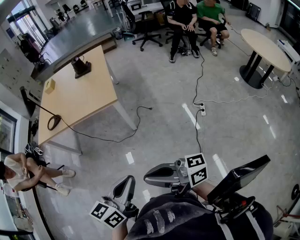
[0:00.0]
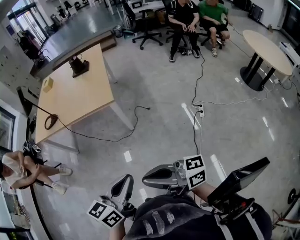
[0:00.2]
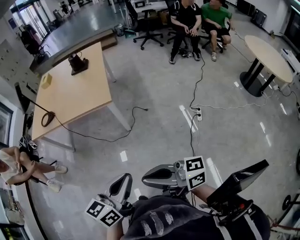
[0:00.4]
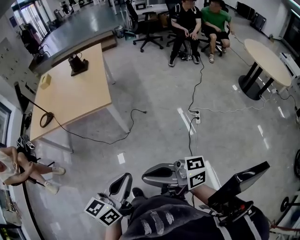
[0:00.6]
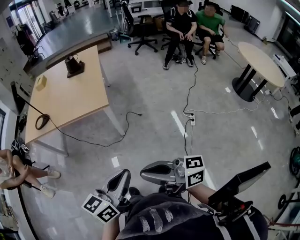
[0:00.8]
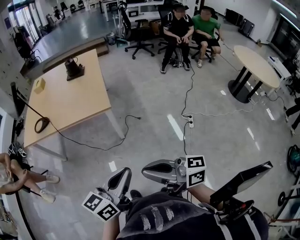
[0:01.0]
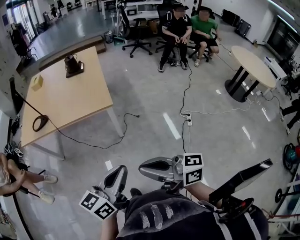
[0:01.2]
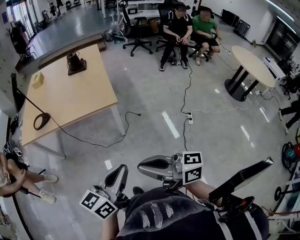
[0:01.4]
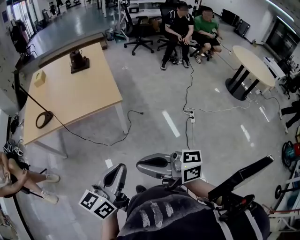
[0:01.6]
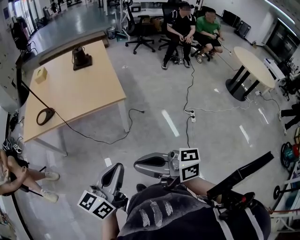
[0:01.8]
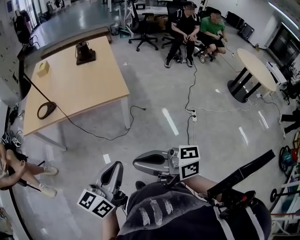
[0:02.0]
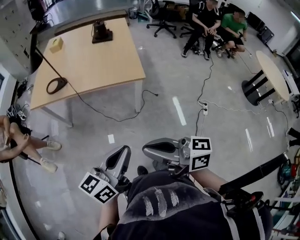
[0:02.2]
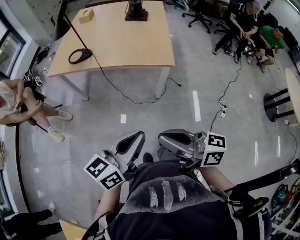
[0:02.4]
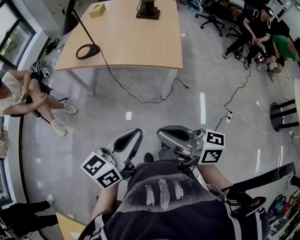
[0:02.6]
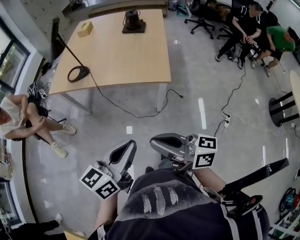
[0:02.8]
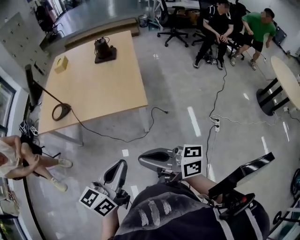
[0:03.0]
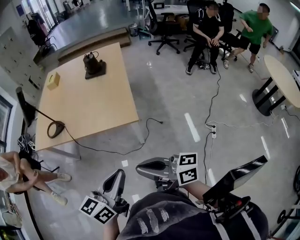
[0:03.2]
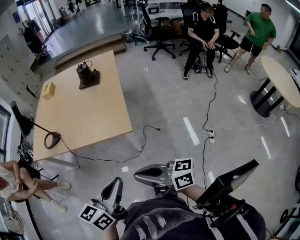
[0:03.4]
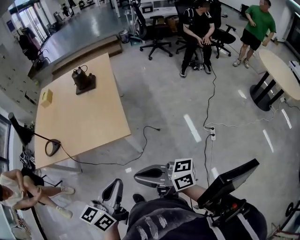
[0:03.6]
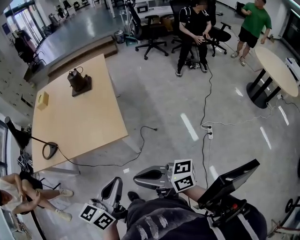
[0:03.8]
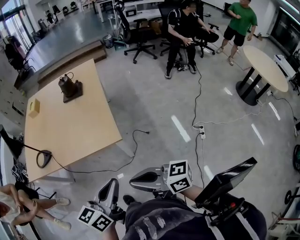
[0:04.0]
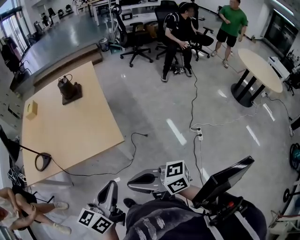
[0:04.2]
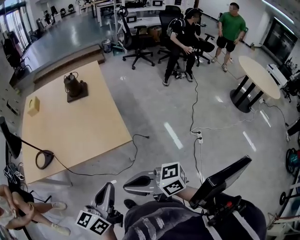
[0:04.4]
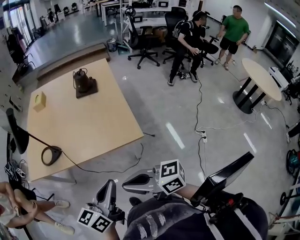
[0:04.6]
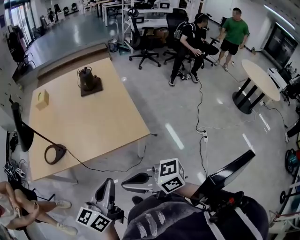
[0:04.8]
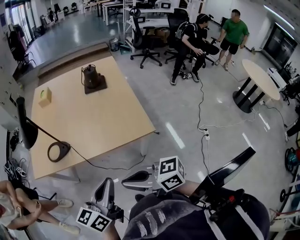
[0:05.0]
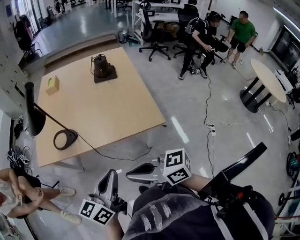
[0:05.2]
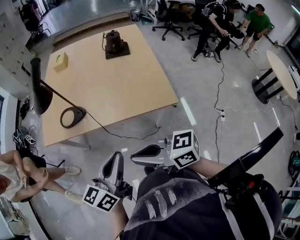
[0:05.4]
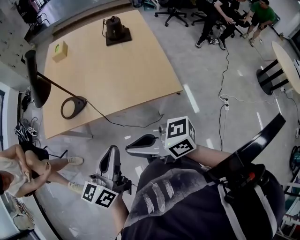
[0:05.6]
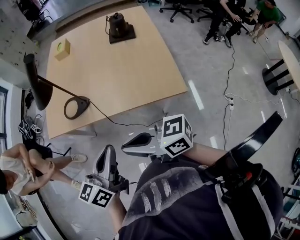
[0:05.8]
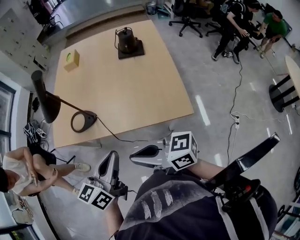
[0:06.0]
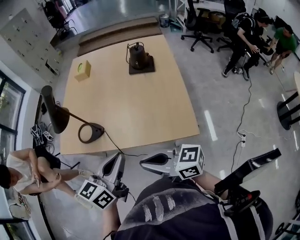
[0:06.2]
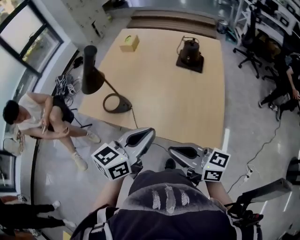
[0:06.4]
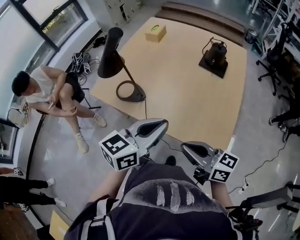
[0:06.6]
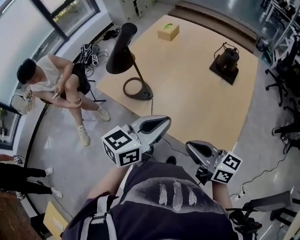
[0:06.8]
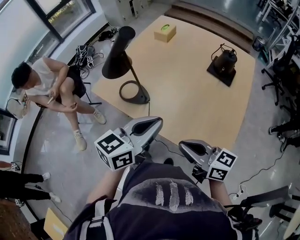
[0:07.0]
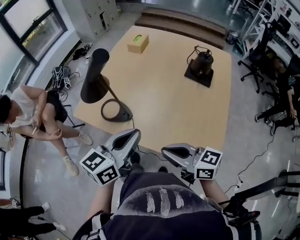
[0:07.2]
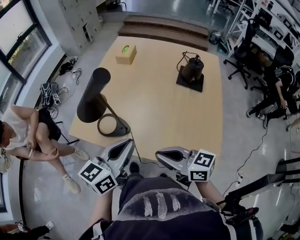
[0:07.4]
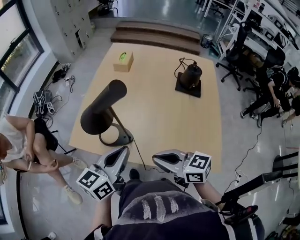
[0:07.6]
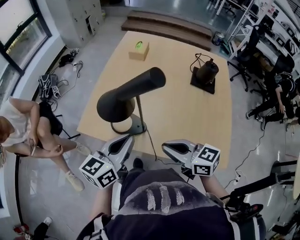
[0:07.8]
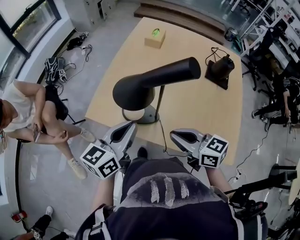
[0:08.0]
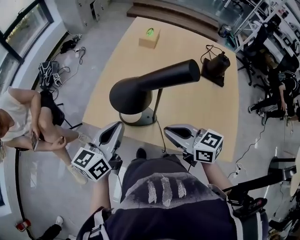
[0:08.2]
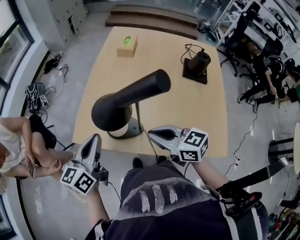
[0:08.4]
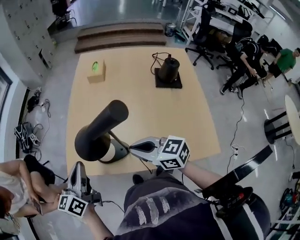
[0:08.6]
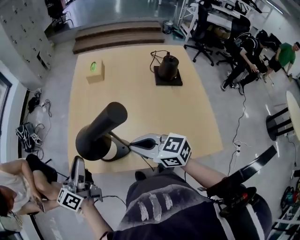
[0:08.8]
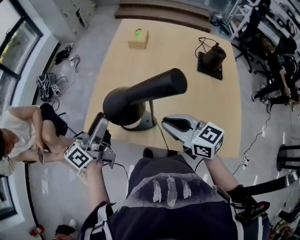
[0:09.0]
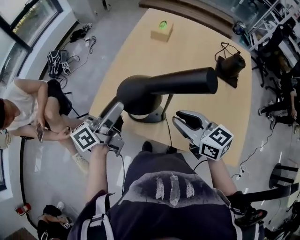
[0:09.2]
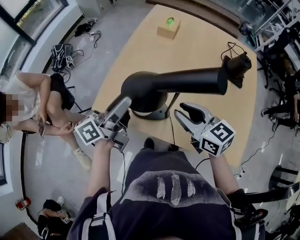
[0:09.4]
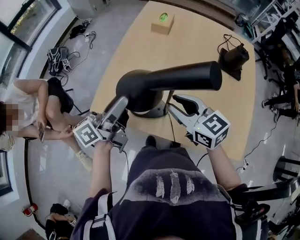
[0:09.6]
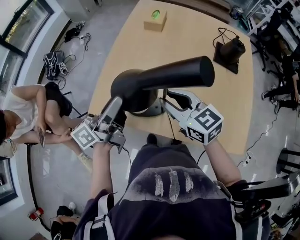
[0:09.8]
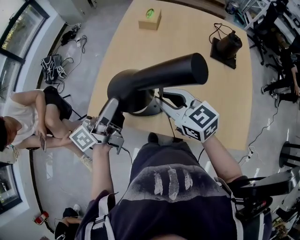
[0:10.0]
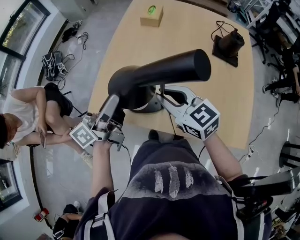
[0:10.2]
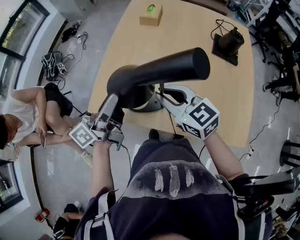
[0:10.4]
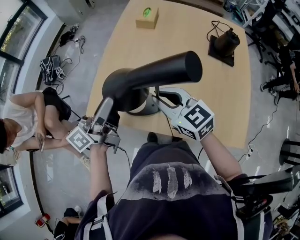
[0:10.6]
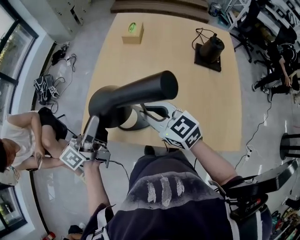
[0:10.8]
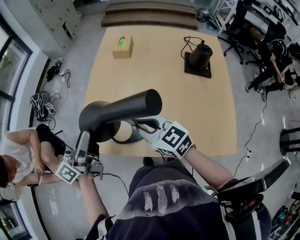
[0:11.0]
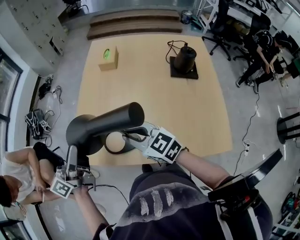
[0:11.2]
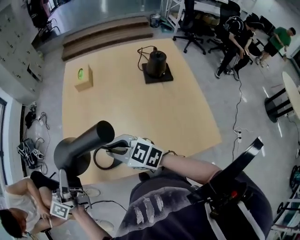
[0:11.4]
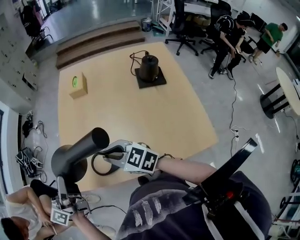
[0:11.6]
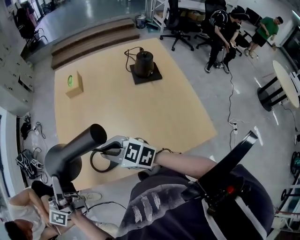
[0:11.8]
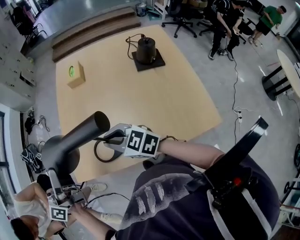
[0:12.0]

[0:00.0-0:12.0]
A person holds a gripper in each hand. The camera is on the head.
0:00.0 to 0:01.6: The two grippers go approximately 15 cm forward and to the left.
0:01.6 to 0:03.0: Both grippers travel together forward, approximately 10 cm.
0:03.0 to 0:04.4: Both grippers move forward, roughly 10 cm. The right gripper travels to the right and back again, some 10 cm each way.
0:04.4 to 0:06.0: The two grippers go about 25 cm to the left and forward.
0:06.0 to 0:07.6: Both grippers move forward, about 20 cm.
0:07.6 to 0:09.0: The left gripper heads forward and to the left, covering roughly 20 cm, changes its angle by approximately 30 degrees, and opens up. The right gripper is displaced forward by roughly 10 cm.
0:09.0 to 0:10.4: The right gripper travels to the left by some 5 cm.
0:10.4 to 0:12.0: The left gripper is displaced upward and to the left by some 10 cm, and rotates approximately 20 degrees.

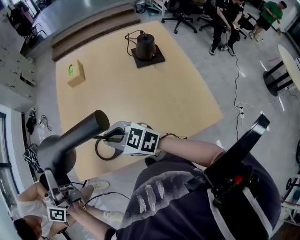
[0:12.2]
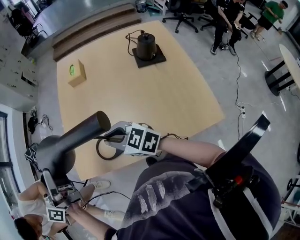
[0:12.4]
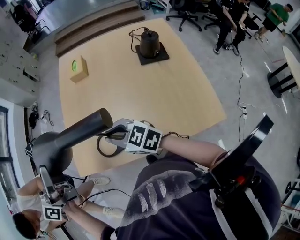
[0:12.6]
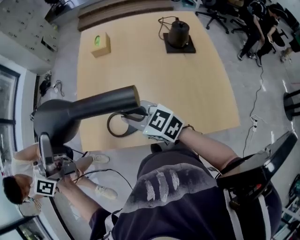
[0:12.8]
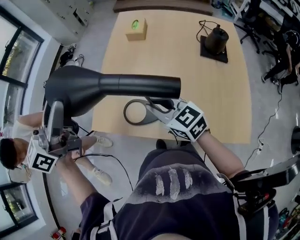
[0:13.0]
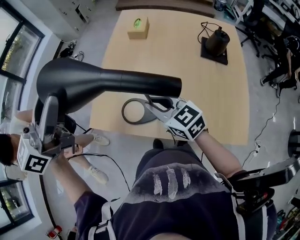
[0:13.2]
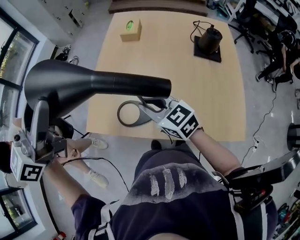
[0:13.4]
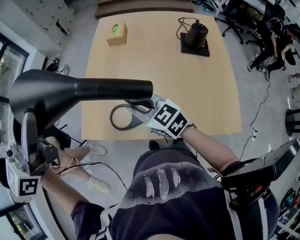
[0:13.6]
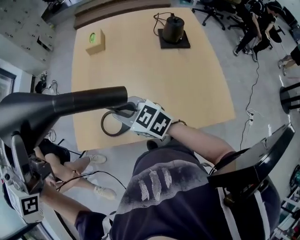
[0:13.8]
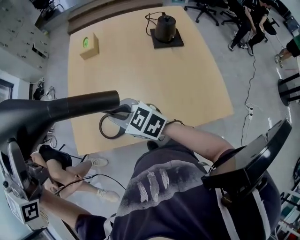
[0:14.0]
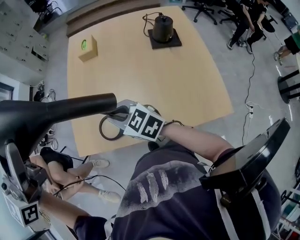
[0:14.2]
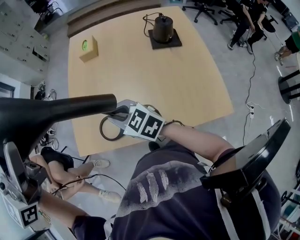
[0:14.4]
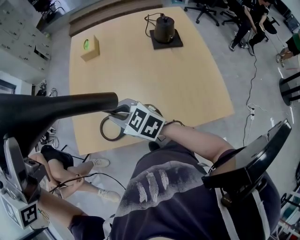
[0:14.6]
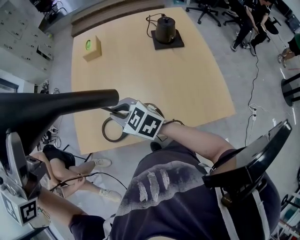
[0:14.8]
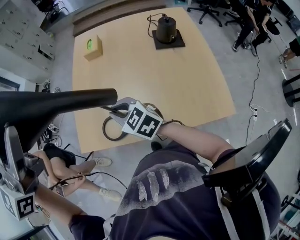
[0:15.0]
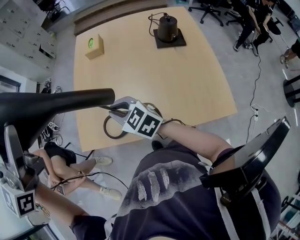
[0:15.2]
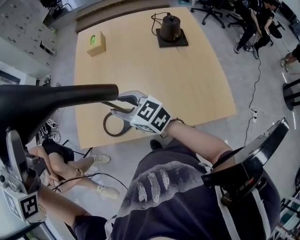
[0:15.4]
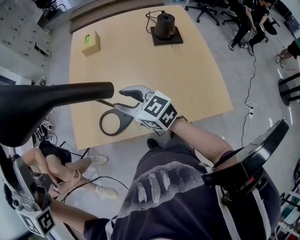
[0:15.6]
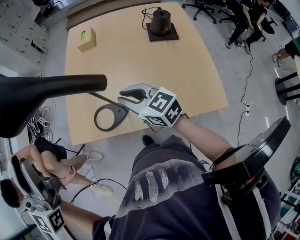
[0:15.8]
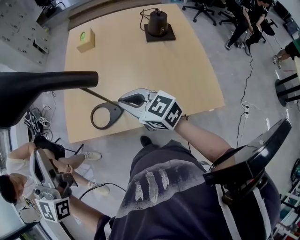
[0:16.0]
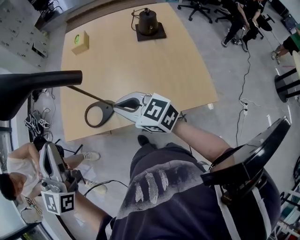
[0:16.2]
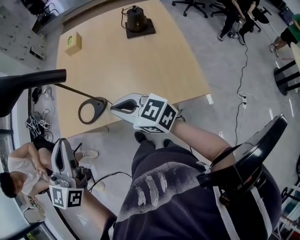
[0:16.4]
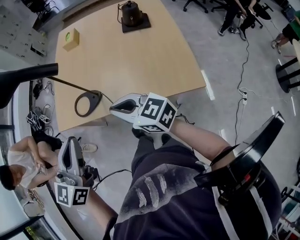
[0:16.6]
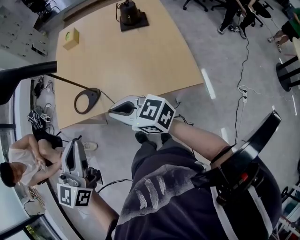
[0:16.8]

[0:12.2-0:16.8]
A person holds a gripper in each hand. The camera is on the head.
0:12.2 to 0:13.8: The left gripper goes about 15 cm upward, and swivels approximately 40 degrees.
0:13.8 to 0:15.2: The left gripper changes place by approximately 5 cm.
0:15.2 to 0:16.8: The right gripper travels backward and to the right by roughly 30 cm, and opens and closes again, while the left gripper moves backward and downward, approximately 35 cm, turns by approximately 30 degrees, and closes up.

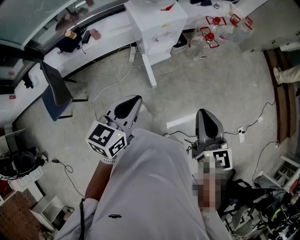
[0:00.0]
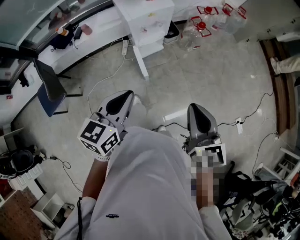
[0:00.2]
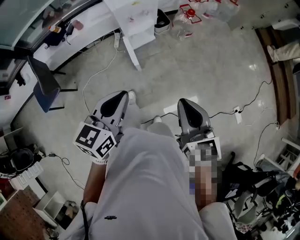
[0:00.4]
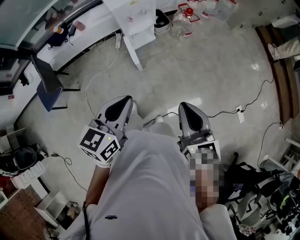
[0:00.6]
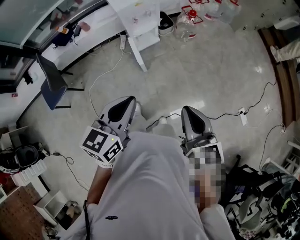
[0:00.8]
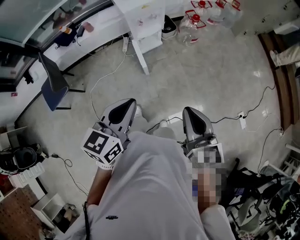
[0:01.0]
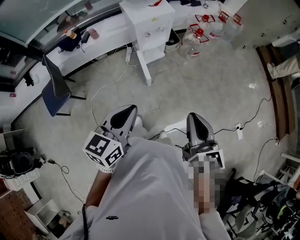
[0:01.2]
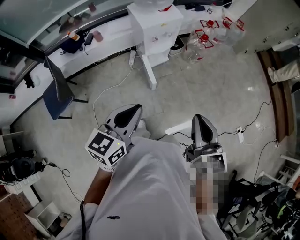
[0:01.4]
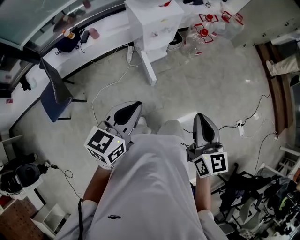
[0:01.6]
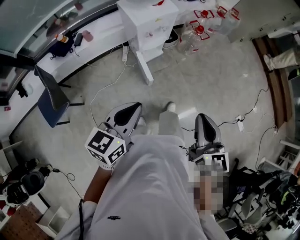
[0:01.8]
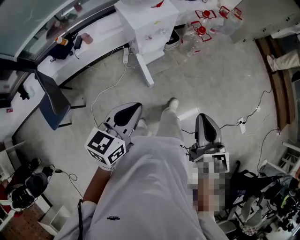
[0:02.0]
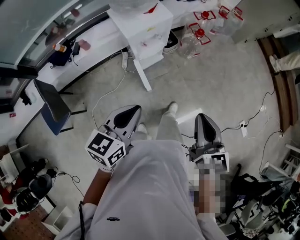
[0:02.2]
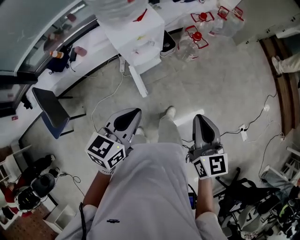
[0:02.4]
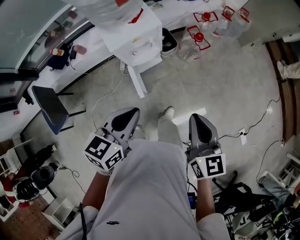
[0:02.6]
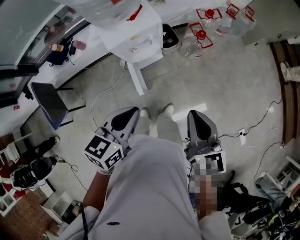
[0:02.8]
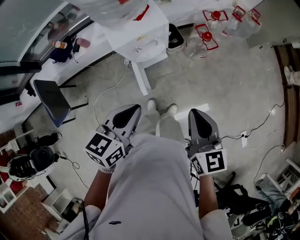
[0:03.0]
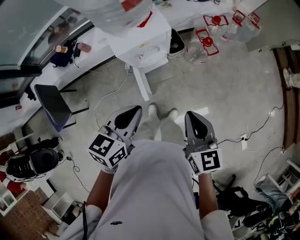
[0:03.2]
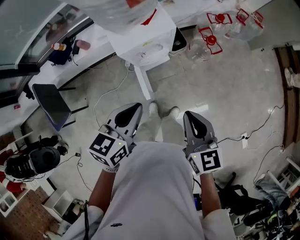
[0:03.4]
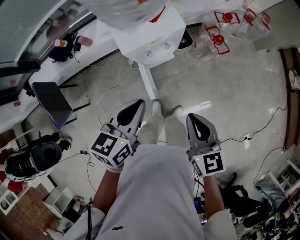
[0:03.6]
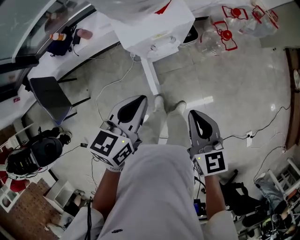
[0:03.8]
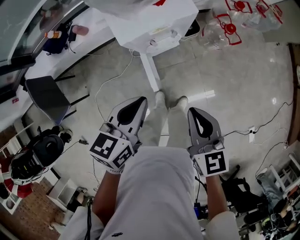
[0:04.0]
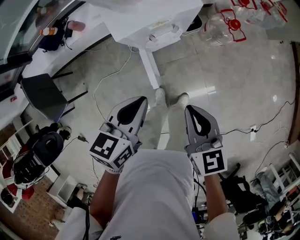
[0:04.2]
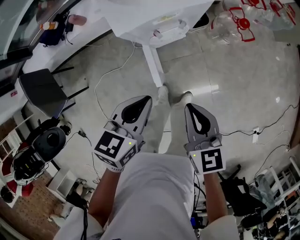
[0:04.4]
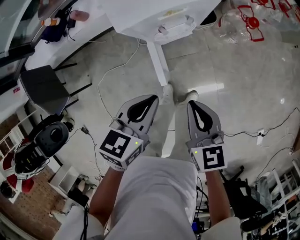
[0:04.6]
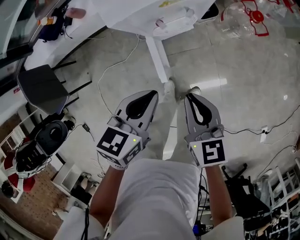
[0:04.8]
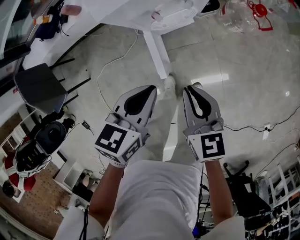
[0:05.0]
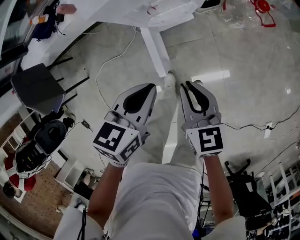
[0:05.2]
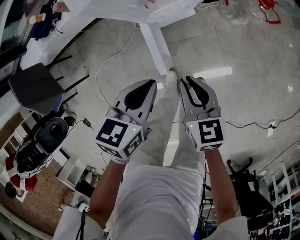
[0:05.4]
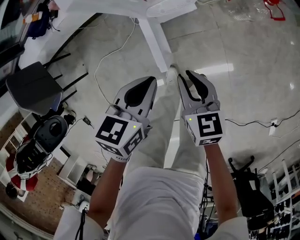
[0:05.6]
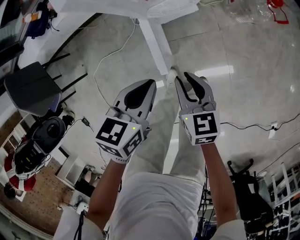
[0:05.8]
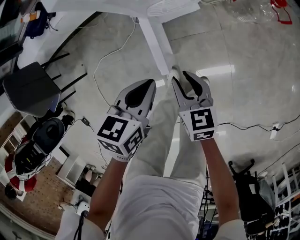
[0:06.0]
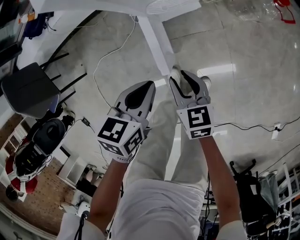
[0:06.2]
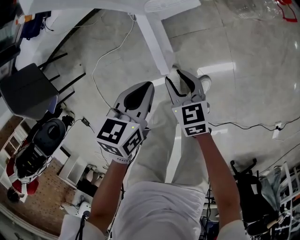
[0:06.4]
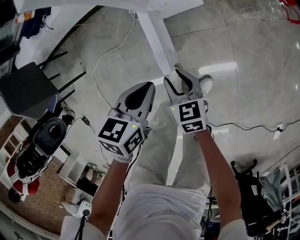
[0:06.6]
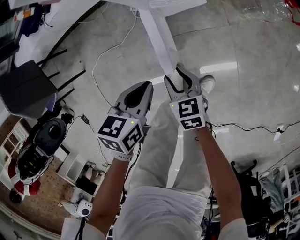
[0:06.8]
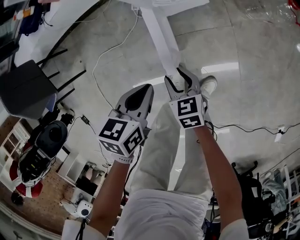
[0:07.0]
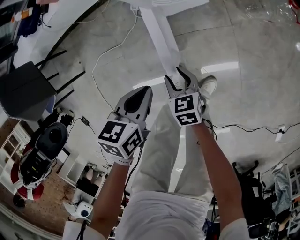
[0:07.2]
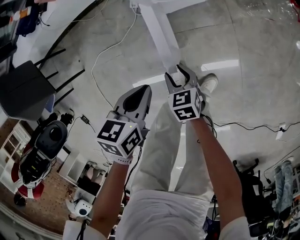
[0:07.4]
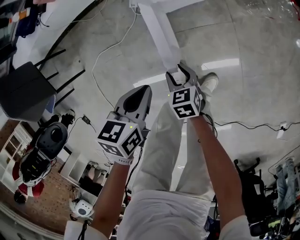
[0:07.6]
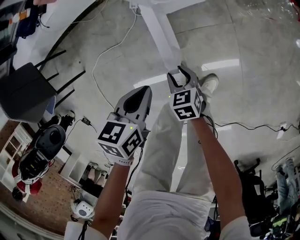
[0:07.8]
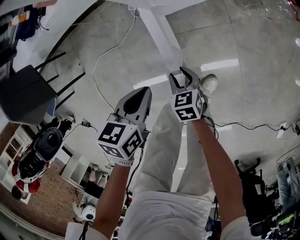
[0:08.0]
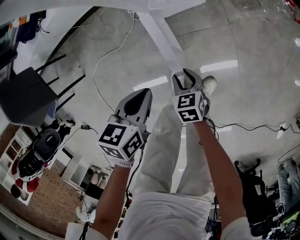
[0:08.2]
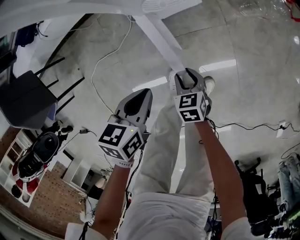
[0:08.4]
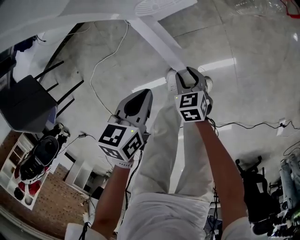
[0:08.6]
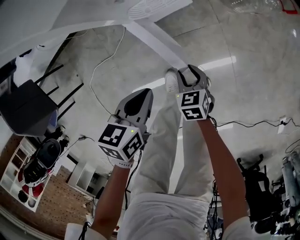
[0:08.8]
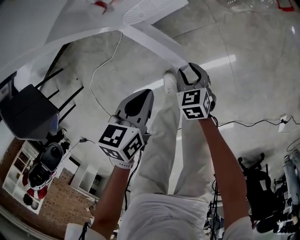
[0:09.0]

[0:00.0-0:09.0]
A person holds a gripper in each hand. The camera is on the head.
0:00.0 to 0:01.6: The two grippers go roughly 10 cm backward. The left gripper reaches some 15 cm to the right, then returns.
0:01.6 to 0:03.0: The right gripper shifts approximately 30 cm forward, while the left gripper is displaced forward and to the right by roughly 30 cm.
0:03.0 to 0:04.4: The left gripper goes roughly 20 cm downward and forward; the right gripper shifts approximately 20 cm downward and to the left.
0:04.4 to 0:06.0: Both grippers move downward, roughly 25 cm. The right gripper opens.
0:06.0 to 0:07.6: The left gripper moves downward and to the left, approximately 10 cm; the right gripper moves downward, roughly 20 cm.
0:07.6 to 0:09.0: The grippers both shift to the right and forward by approximately 10 cm.
